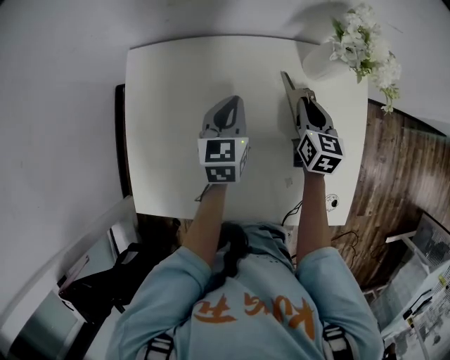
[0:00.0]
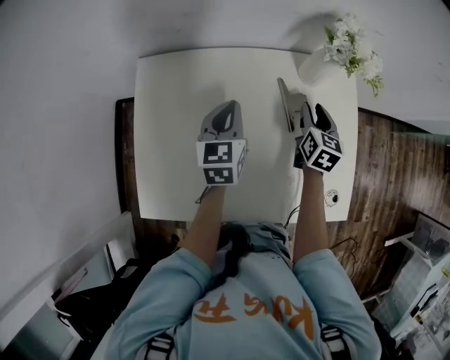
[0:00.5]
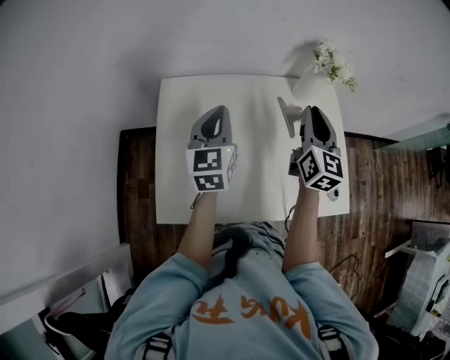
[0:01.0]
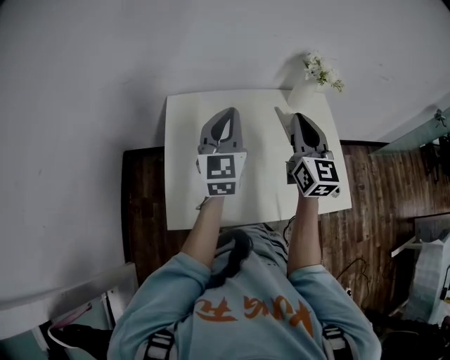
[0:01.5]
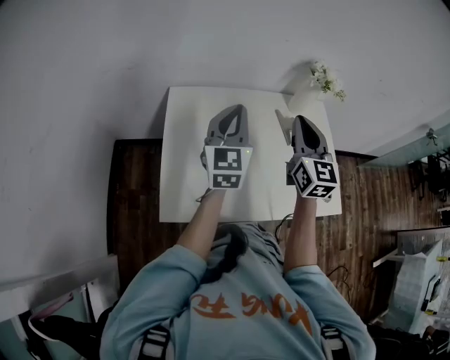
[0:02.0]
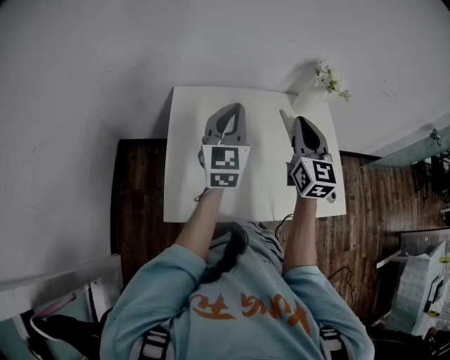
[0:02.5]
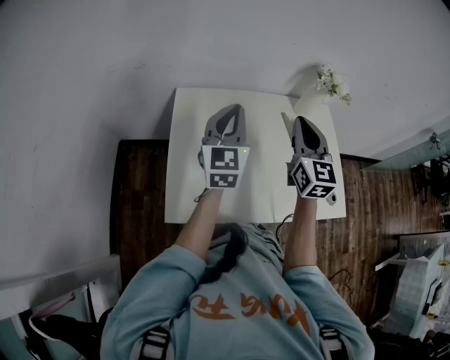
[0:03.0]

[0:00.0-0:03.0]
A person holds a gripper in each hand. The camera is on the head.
0.0 to 1.5 s: Both grippers move upward, backward and to the left, some 35 cm. The right gripper tips its fingers upward by some 30 degrees, and opens and closes again, while the left gripper tips its fingers upward by about 30 degrees.
1.5 to 3.0 s: The grippers move only a little.

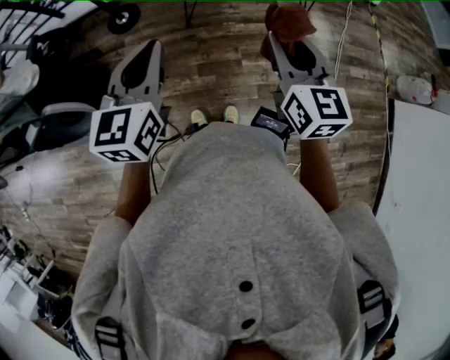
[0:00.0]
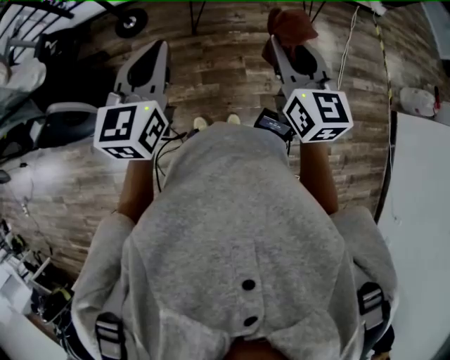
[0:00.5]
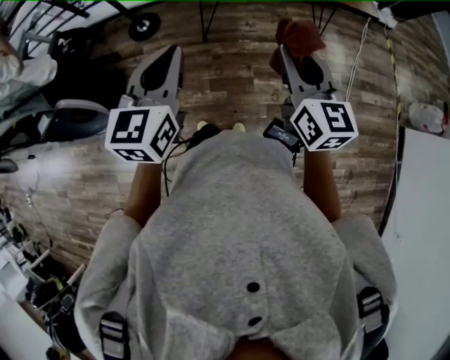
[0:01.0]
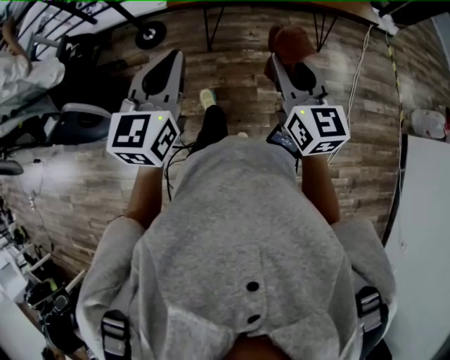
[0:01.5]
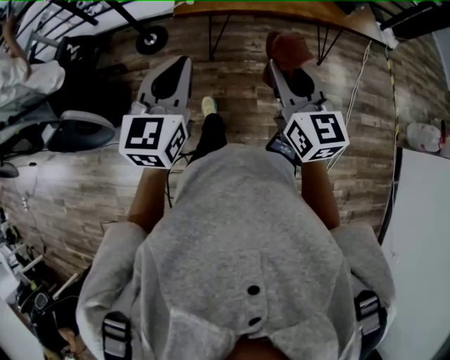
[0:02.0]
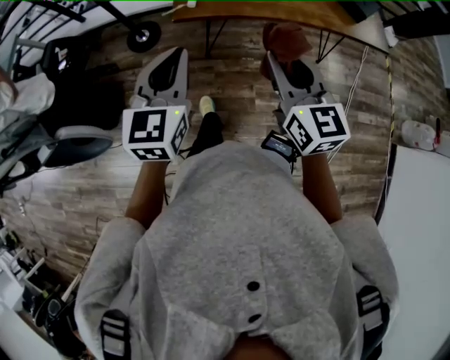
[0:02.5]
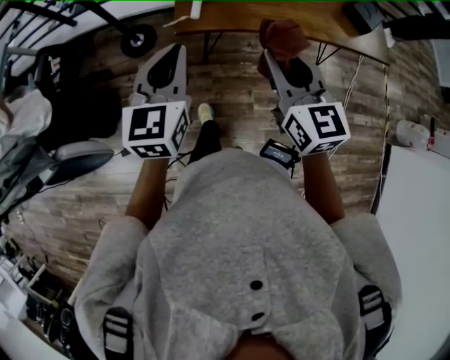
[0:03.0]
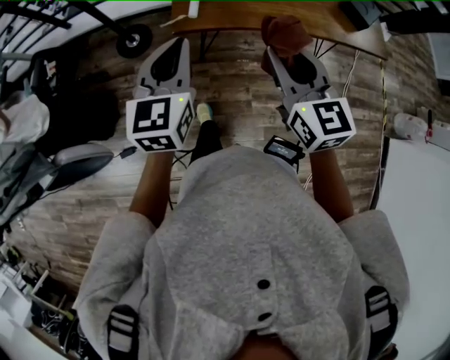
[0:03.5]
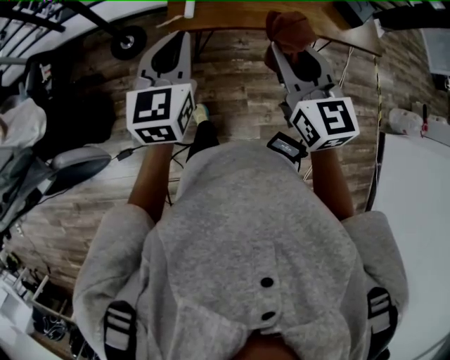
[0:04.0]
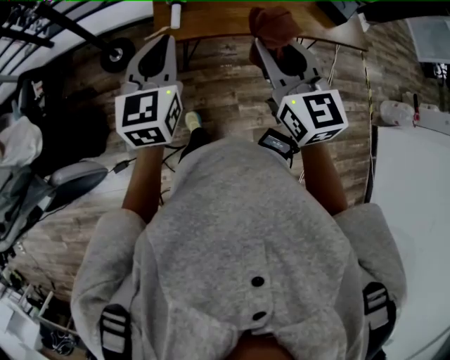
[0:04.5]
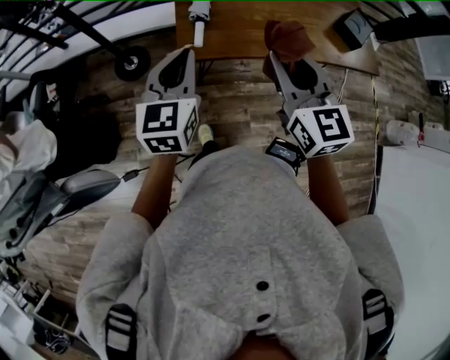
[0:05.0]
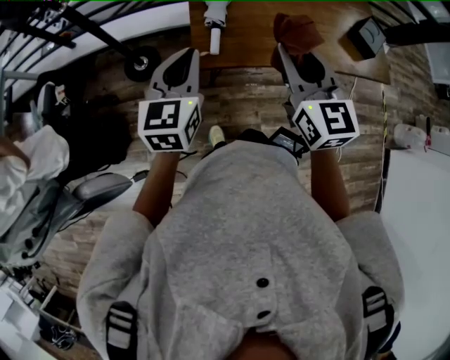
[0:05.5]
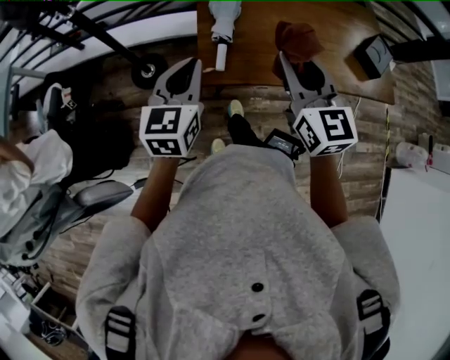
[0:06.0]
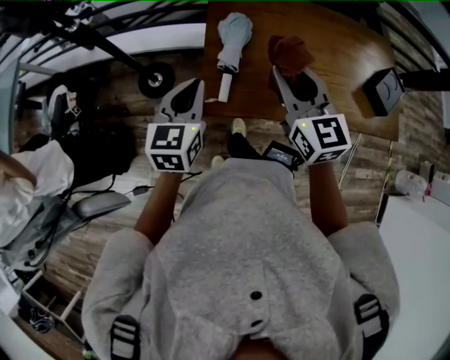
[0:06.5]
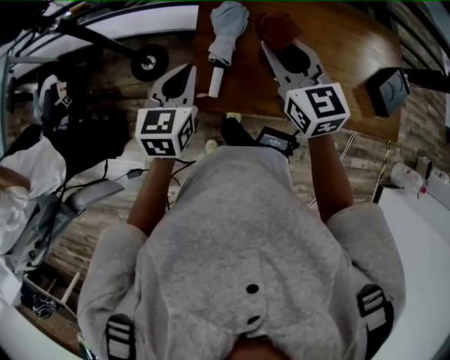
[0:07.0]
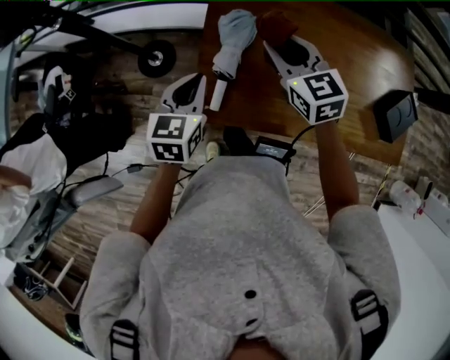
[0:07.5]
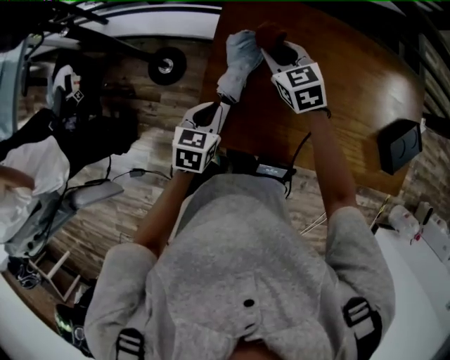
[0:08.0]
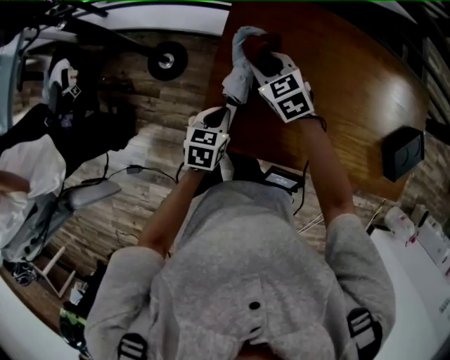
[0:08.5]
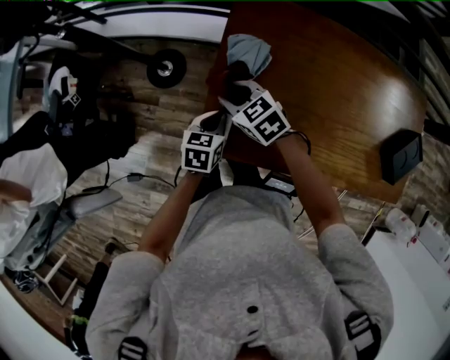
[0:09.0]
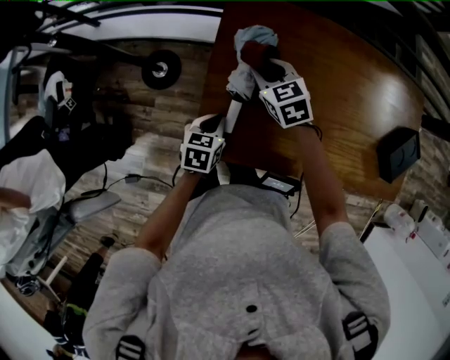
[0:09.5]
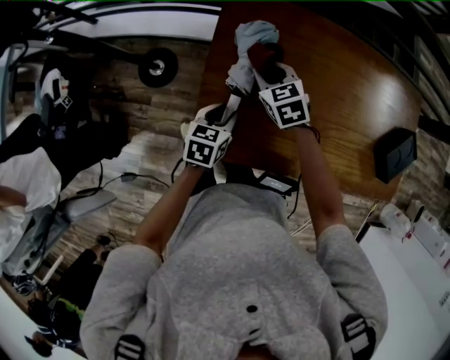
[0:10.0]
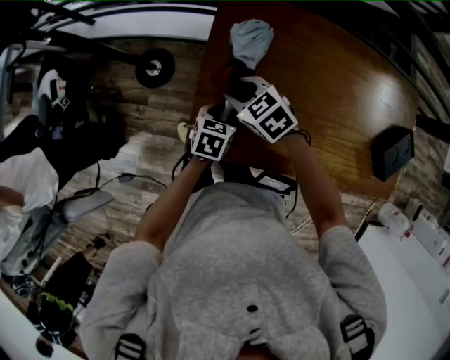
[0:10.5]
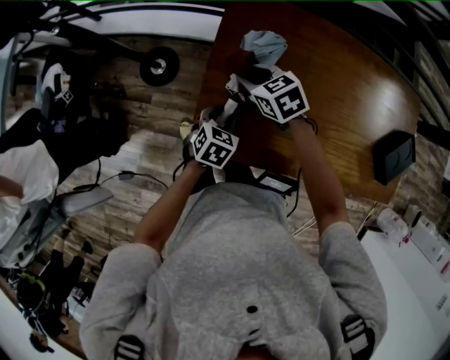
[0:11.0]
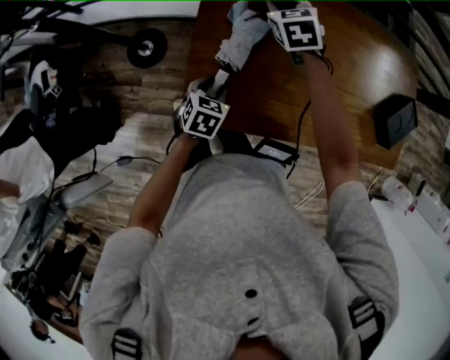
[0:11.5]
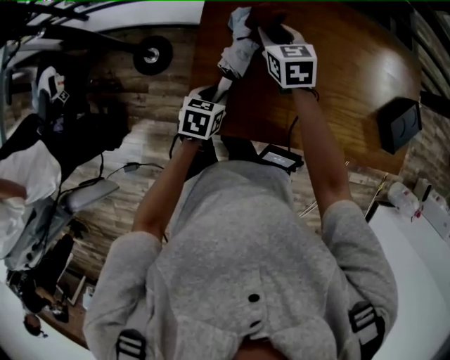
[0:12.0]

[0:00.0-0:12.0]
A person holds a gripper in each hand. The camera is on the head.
0.0 to 2.0 s: The left gripper moves some 5 cm.
2.0 to 4.0 s: The grippers both shift forward by approximately 25 cm.
4.0 to 6.0 s: The left gripper is displaced forward and to the left by roughly 15 cm. Meanwhile the right gripper moves forward, some 20 cm.
6.0 to 8.0 s: The right gripper goes some 40 cm forward and downward, and changes its angle by approximately 30 degrees; the left gripper heads downward, forward and to the right, covering roughly 25 cm, and changes its angle by approximately 30 degrees.
8.0 to 10.0 s: Both grippers move downward, some 5 cm. The right gripper moves some 15 cm to the left and comes back. The left gripper opens.
10.0 to 12.0 s: The right gripper swings forward and backward, some 15 cm each way, with 2 reversals.

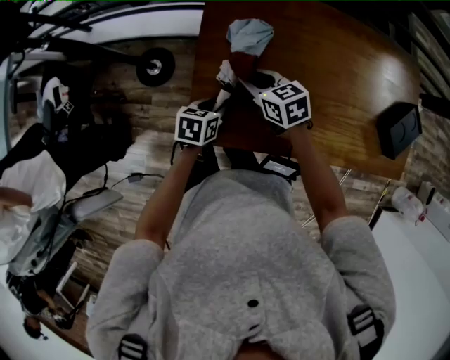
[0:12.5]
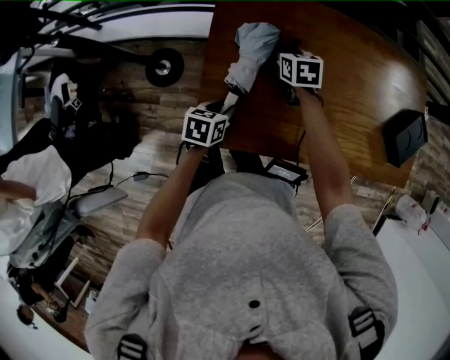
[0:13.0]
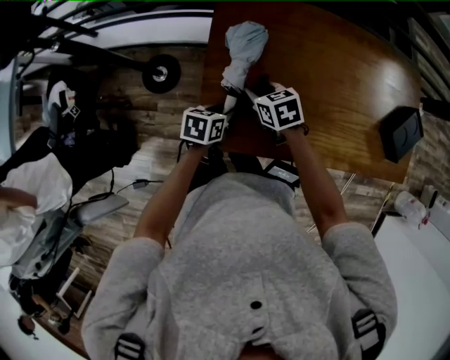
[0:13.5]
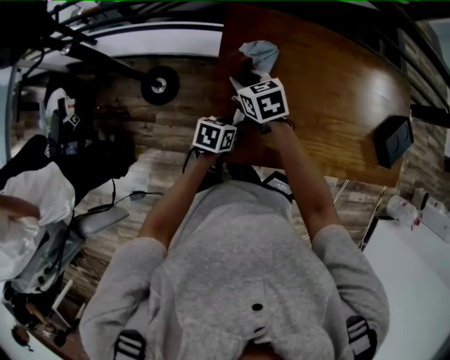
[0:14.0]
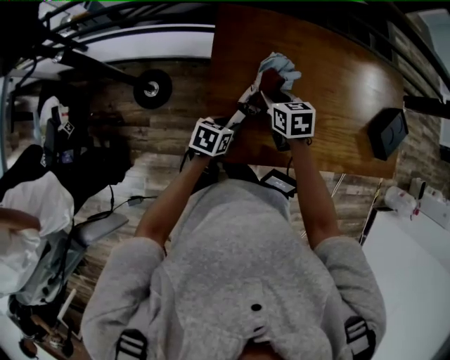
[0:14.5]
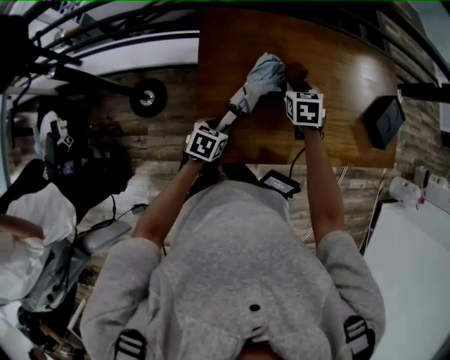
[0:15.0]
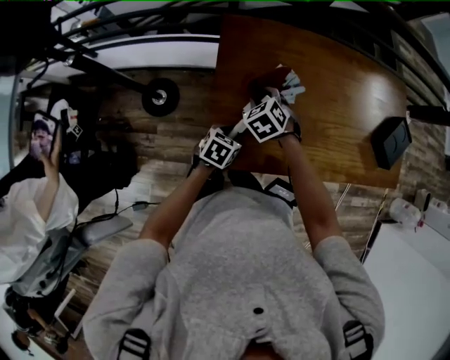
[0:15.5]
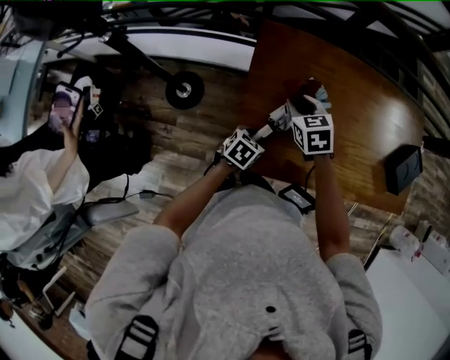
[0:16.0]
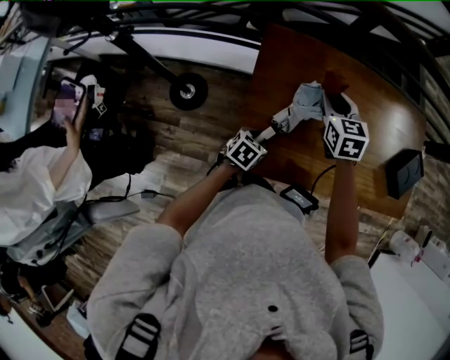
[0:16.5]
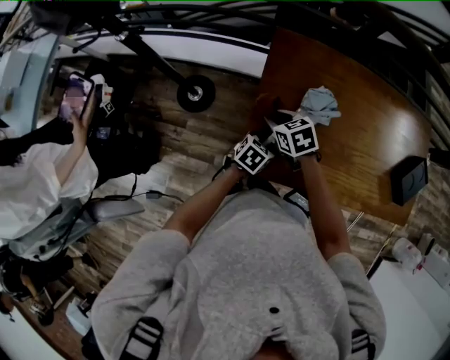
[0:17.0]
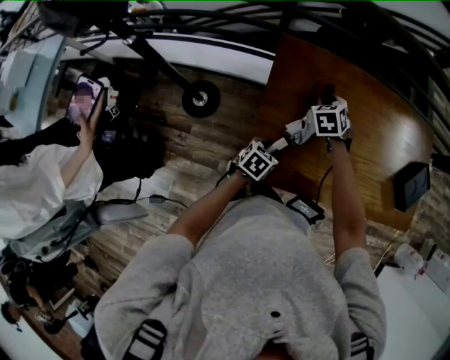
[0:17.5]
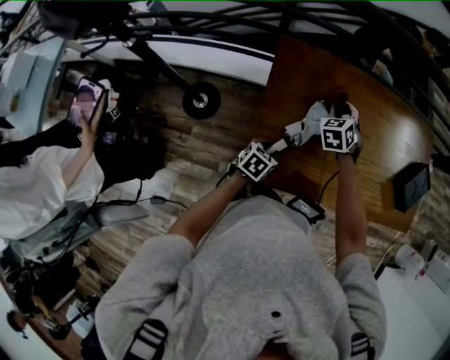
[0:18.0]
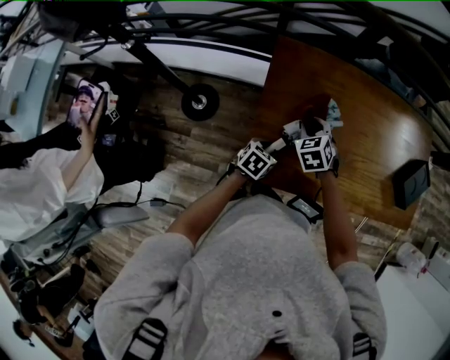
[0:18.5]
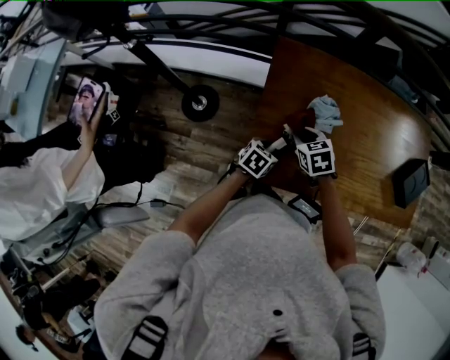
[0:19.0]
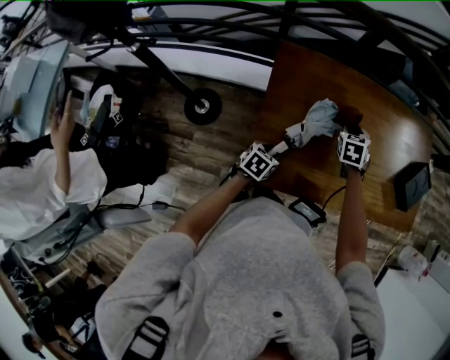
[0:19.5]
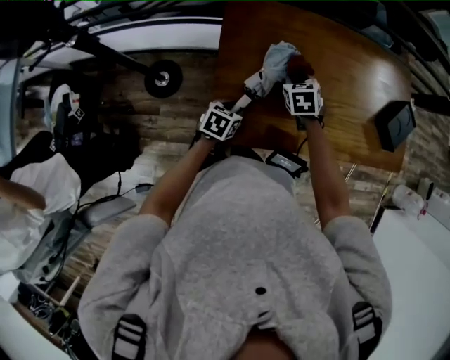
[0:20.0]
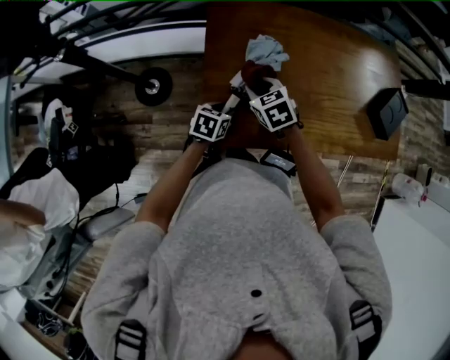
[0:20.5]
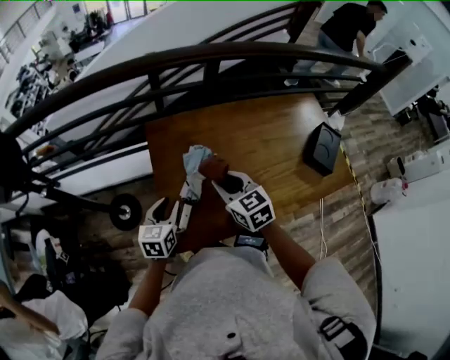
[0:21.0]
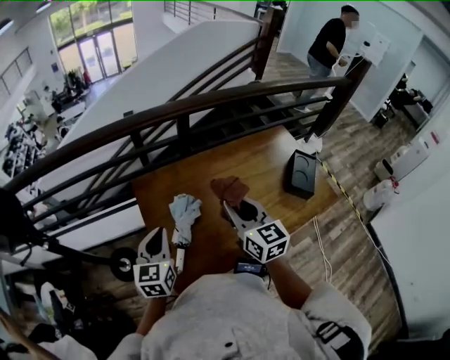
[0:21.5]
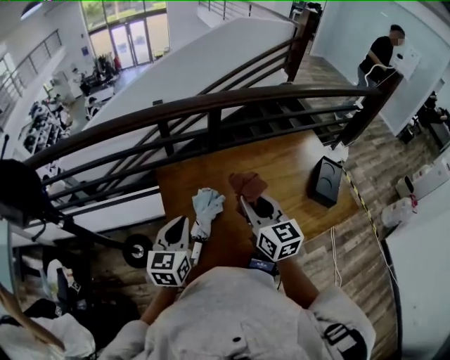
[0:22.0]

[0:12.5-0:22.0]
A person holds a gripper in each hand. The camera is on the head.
12.5 to 14.5 s: The right gripper goes left and right, approximately 15 cm each way, reversing 2 times, and turns by about 20 degrees.
14.5 to 16.5 s: The right gripper swings left and right, roughly 15 cm each way, with 2 reversals, and turns by approximately 20 degrees.
16.5 to 18.0 s: The right gripper is displaced downward by some 10 cm, and changes its angle by approximately 30 degrees.
18.0 to 20.0 s: The right gripper swivels about 20 degrees.
20.0 to 22.0 s: The grippers both shift upward by some 30 cm. The left gripper tips its fingers upward by approximately 30 degrees, and closes. Meanwhile the right gripper angles its fingers upward, by some 40 degrees.

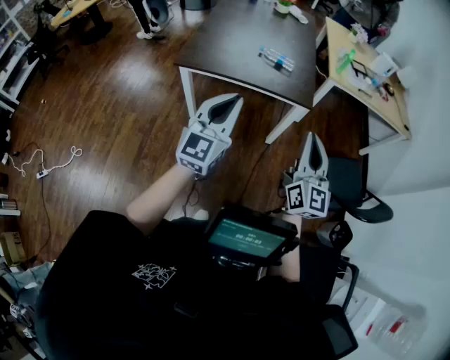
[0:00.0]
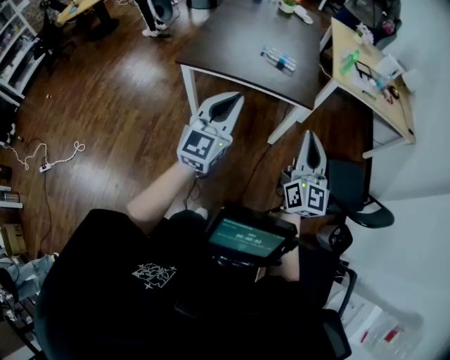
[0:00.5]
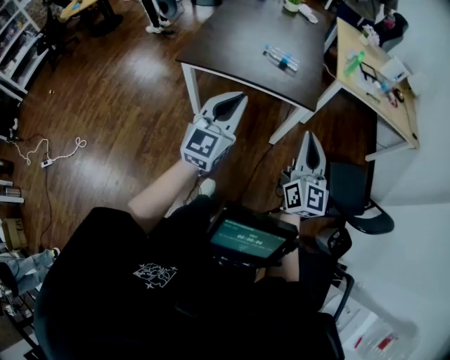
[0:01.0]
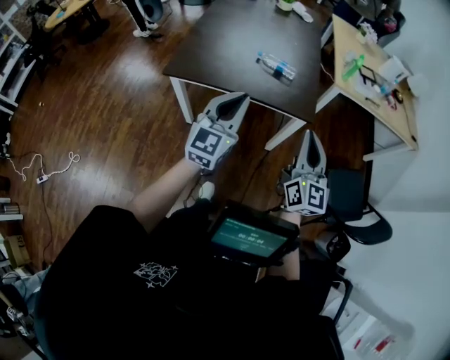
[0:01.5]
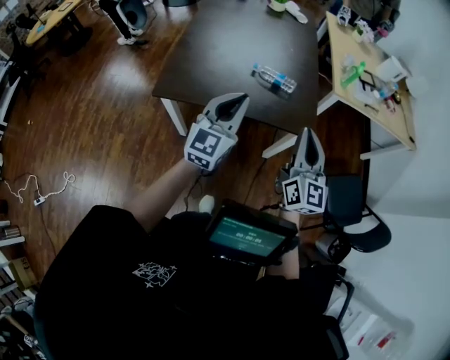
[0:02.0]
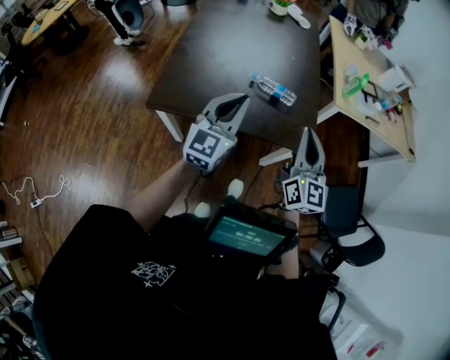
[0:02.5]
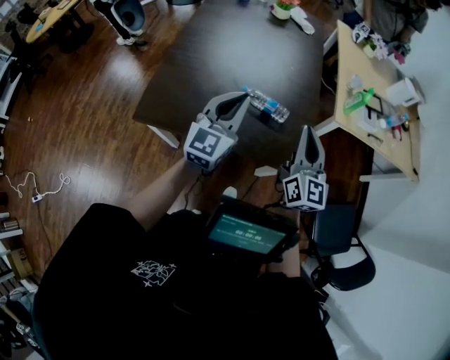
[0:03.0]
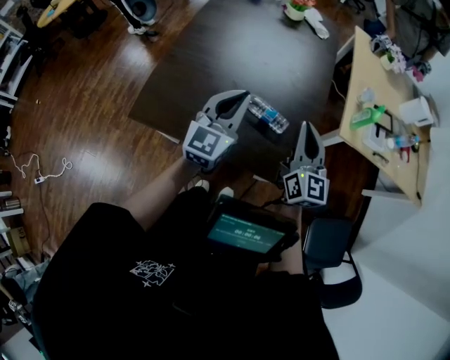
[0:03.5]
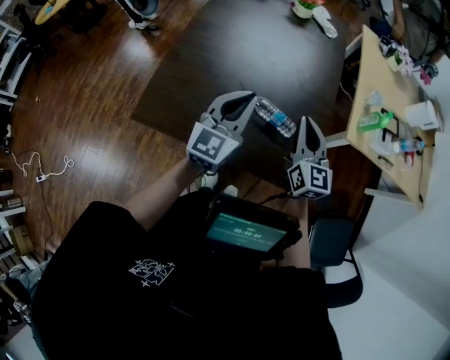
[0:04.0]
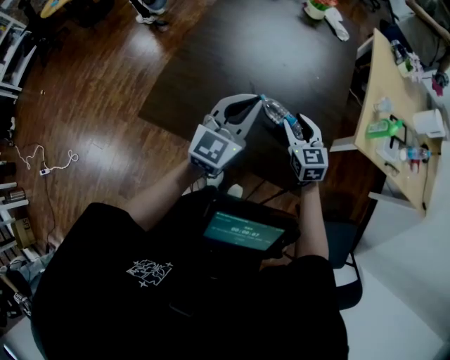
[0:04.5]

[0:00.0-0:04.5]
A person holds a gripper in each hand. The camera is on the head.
0.0 to 2.0 s: The two grippers go roughly 25 cm forward.
2.0 to 4.5 s: The left gripper heads forward, covering about 25 cm. Meanwhile the right gripper shifts some 40 cm forward and downward, tilts its fingers approximately 30 degrees downward, and opens its fingers.
